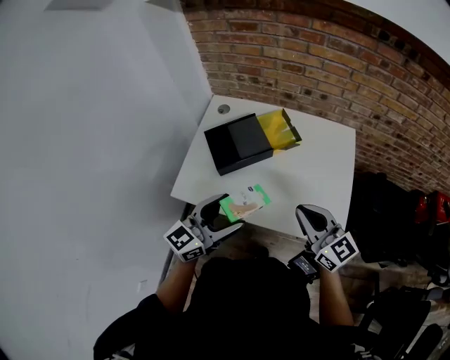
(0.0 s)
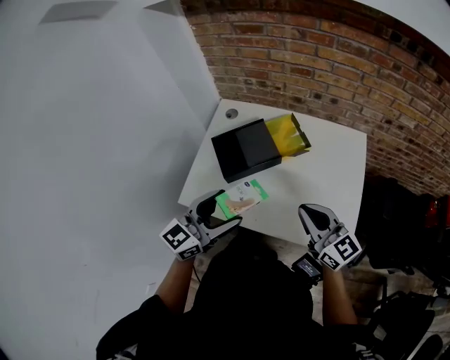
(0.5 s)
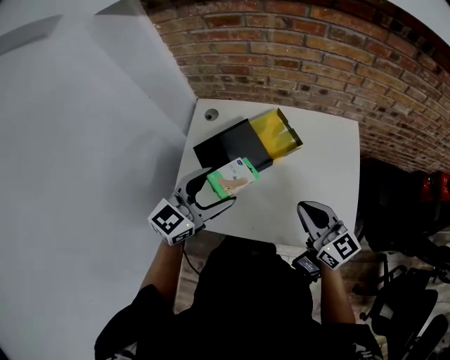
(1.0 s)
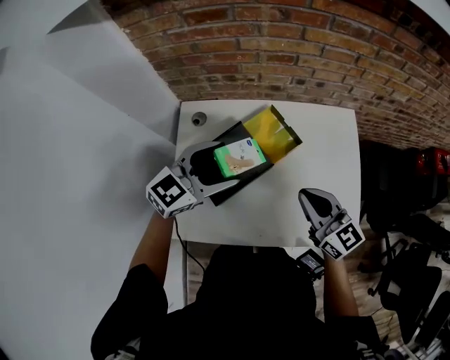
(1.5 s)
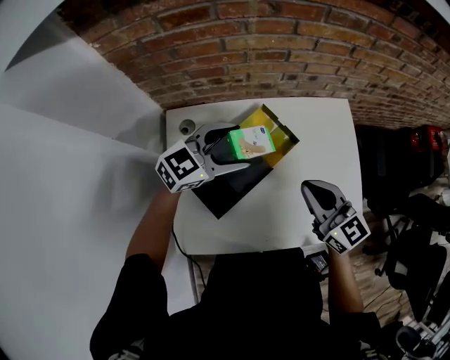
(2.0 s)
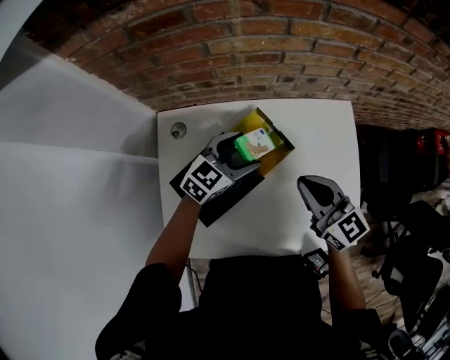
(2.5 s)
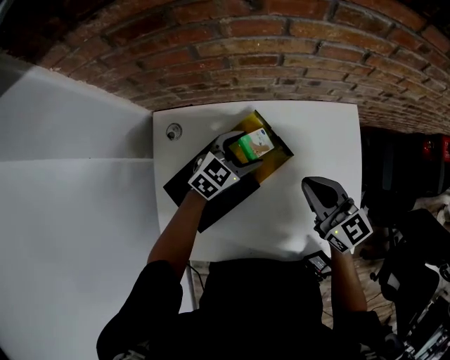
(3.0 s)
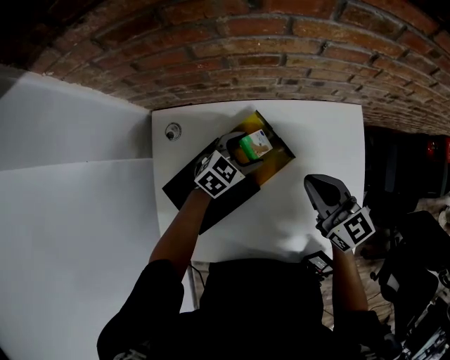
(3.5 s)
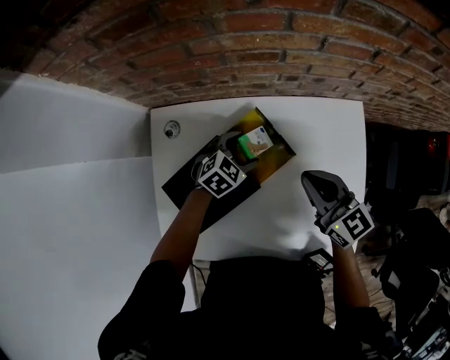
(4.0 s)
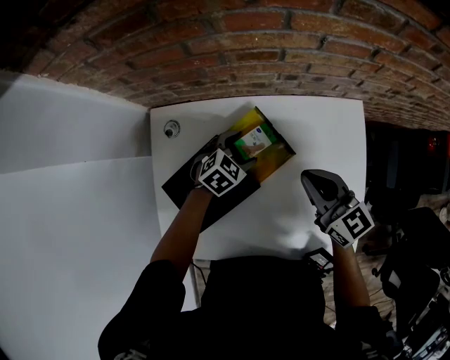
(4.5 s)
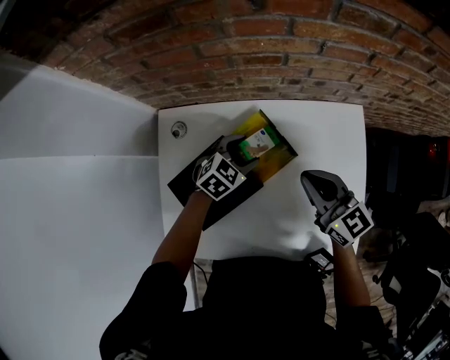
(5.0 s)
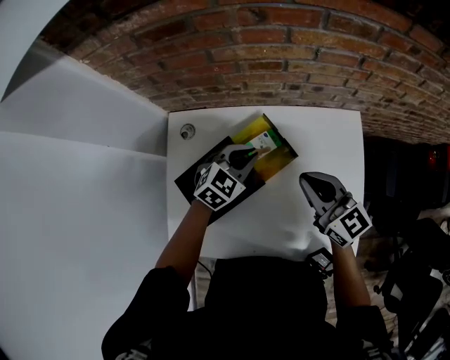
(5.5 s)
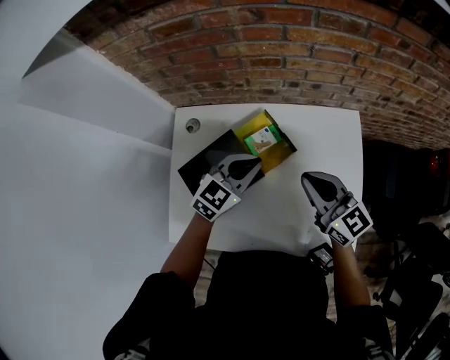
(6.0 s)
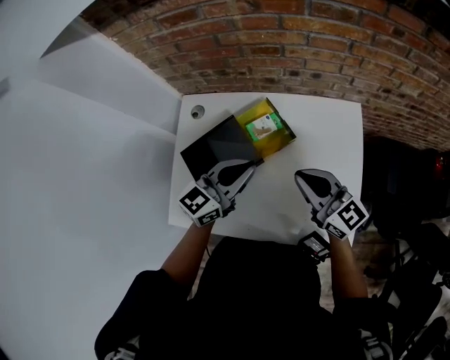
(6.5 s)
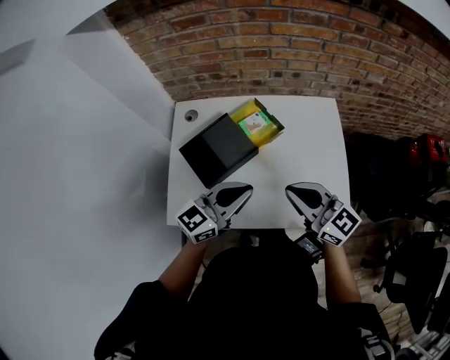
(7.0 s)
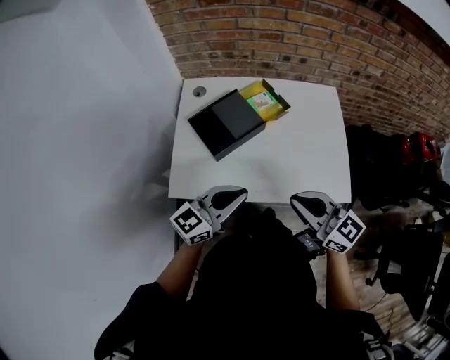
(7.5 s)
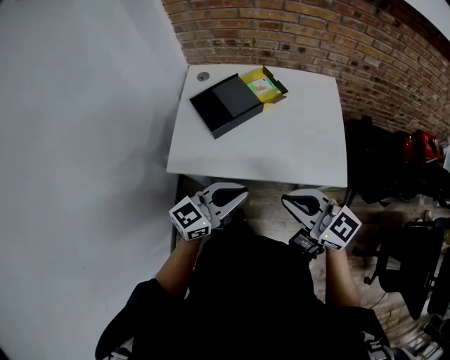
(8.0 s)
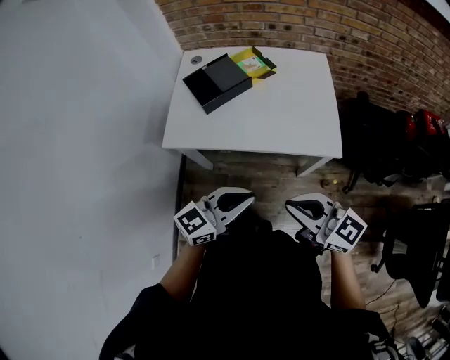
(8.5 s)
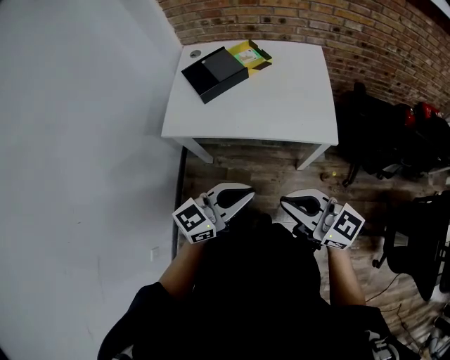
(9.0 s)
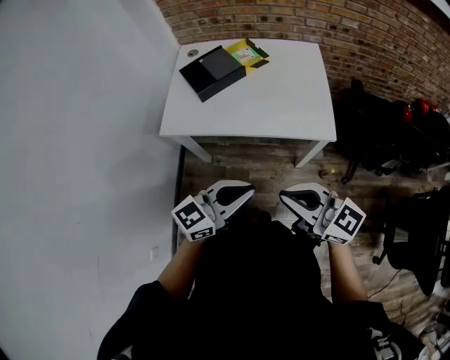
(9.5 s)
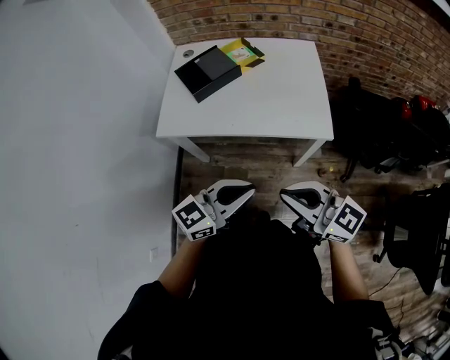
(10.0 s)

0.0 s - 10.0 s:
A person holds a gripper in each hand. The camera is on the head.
0.0 s - 2.0 s: The left gripper changes place by about 35 cm, and swivels about 50 degrees, while the right gripper shifts by about 20 cm, and changes its angle by approximately 20 degrees.
2.0 s - 4.0 s: The left gripper travels downward by some 20 cm, and points its fingers some 30 degrees further downward. Meanwhile the right gripper heads forward and downward, covering approximately 15 cm.
4.0 s - 6.0 s: The right gripper heads upward and backward, covering some 10 cm; the left gripper goes approximately 20 cm upward and backward, turns by some 30 degrees, and closes its fingers.
6.0 s - 8.0 s: The two grippers travel together, backward, some 40 cm. The left gripper rotates about 30 degrees.
8.0 s - 10.0 s: The two grippers go roughly 20 cm backward and to the right.

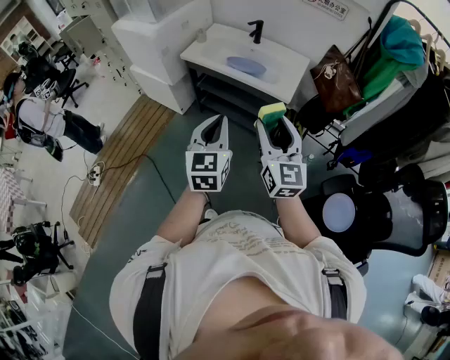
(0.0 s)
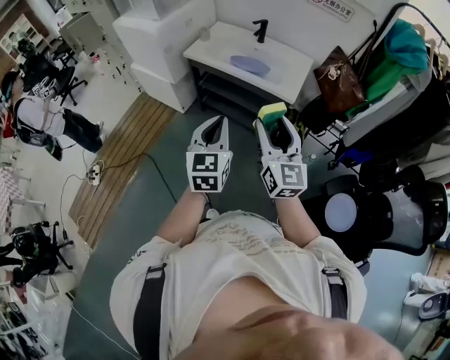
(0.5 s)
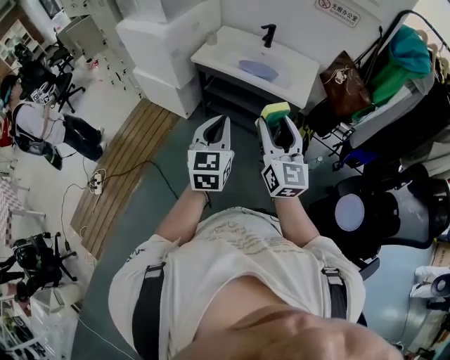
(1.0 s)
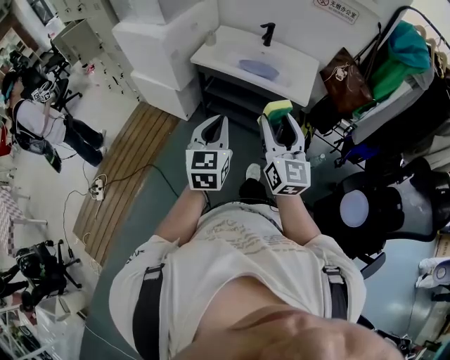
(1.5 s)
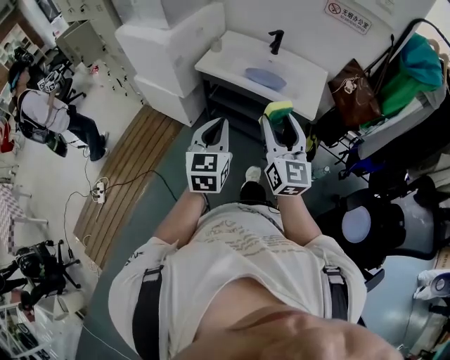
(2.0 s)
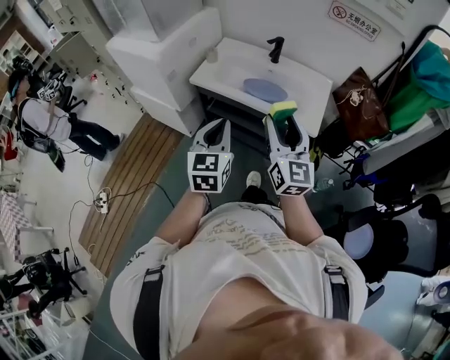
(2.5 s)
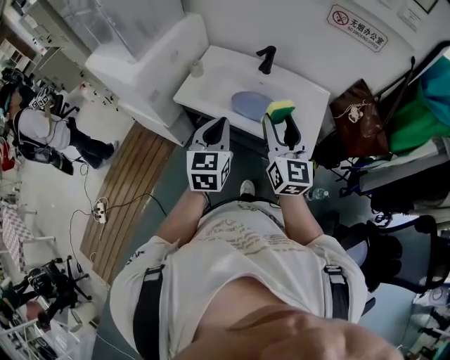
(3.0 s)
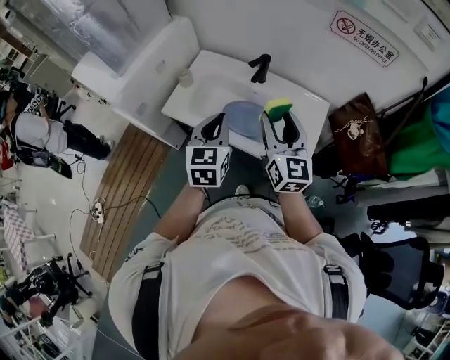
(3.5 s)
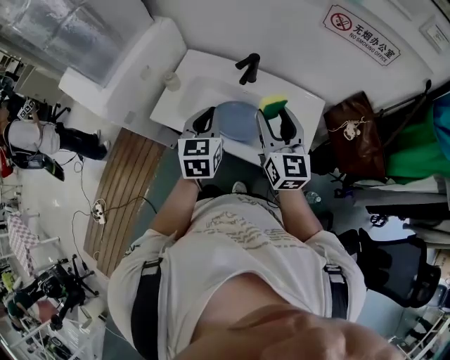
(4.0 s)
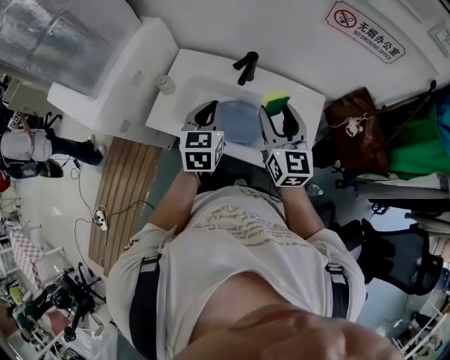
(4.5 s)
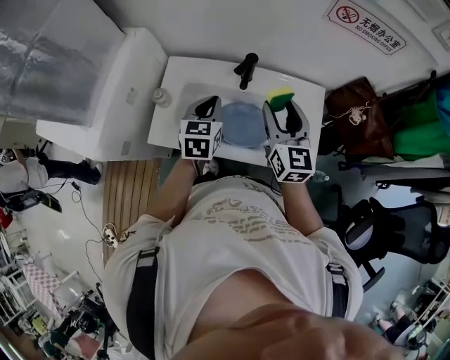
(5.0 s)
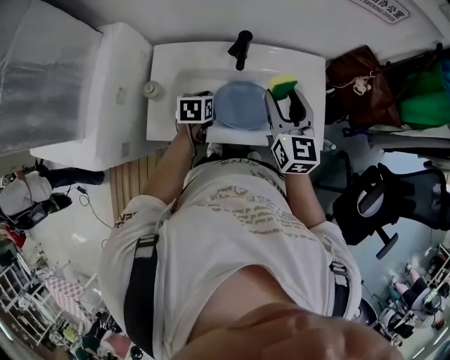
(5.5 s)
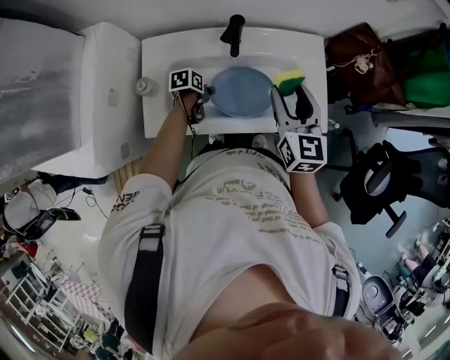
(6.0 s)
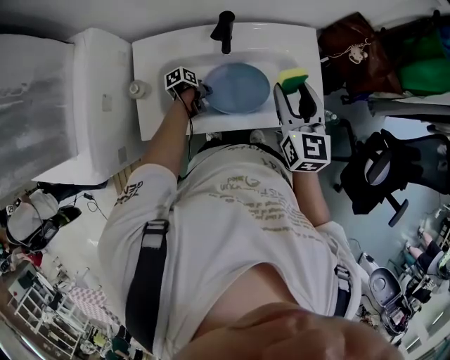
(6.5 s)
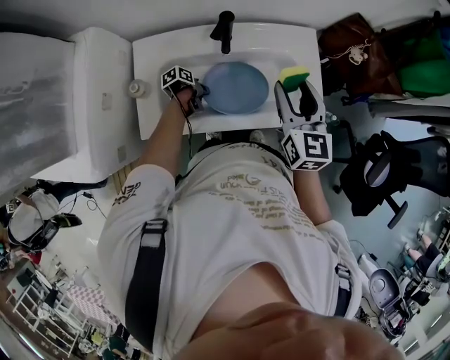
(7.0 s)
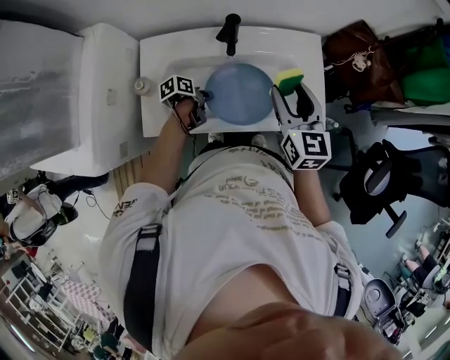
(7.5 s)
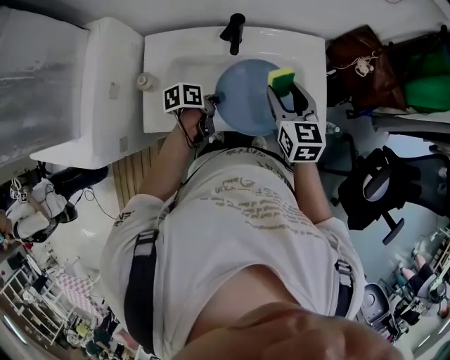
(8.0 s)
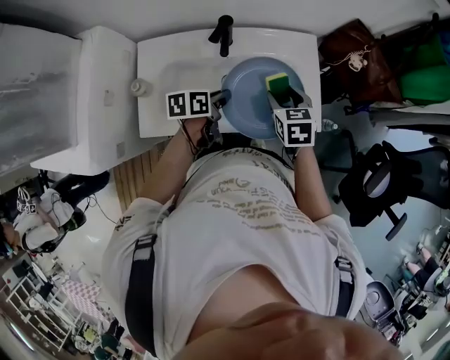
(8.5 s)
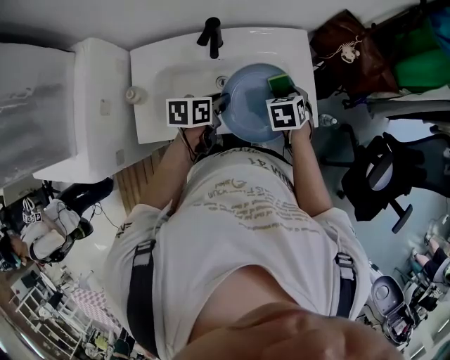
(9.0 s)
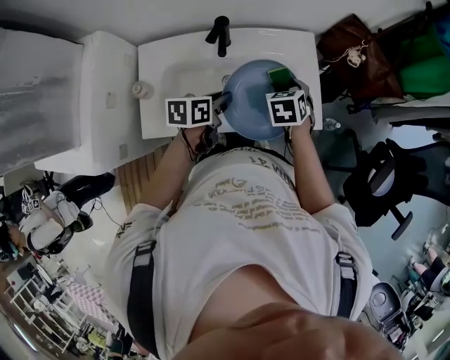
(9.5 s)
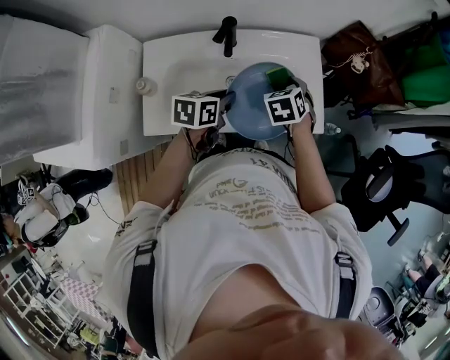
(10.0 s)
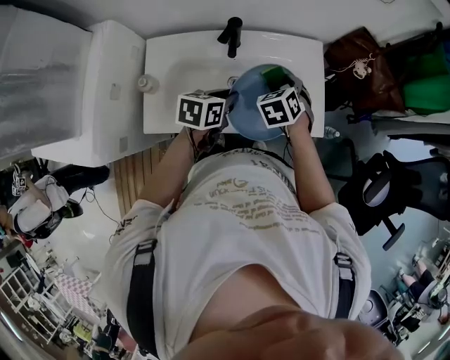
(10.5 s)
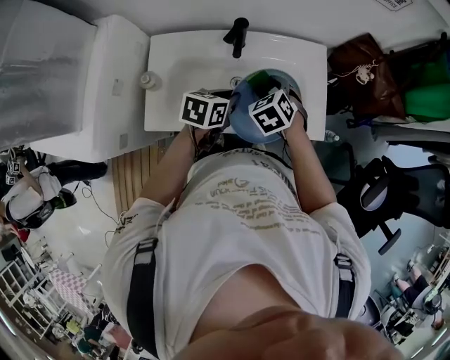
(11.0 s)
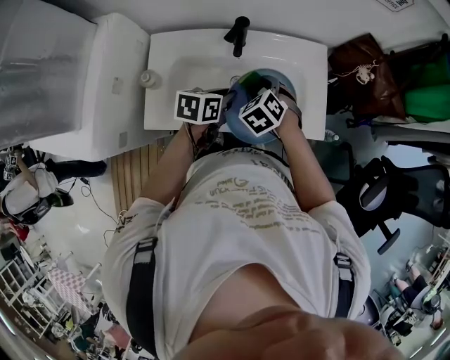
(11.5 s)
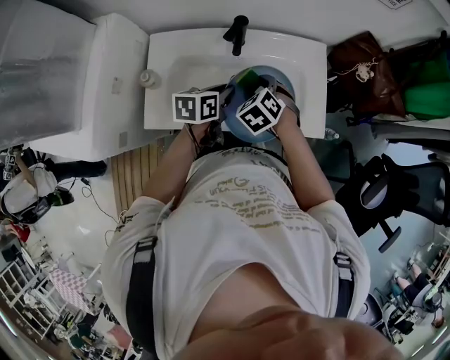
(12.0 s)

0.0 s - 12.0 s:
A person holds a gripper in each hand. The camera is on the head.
0.0 s - 2.0 s: The grippers both shift to the left and forward by approximately 15 cm.
2.0 s - 4.0 s: The two grippers travel together, forward, about 40 cm.
4.0 s - 6.0 s: The right gripper heads downward, covering roughly 5 cm, and changes its angle by roughly 30 degrees, while the left gripper heads downward, covering some 30 cm, points its fingers approximately 40 degrees further downward, and opens its fingers.
6.0 s - 8.0 s: The left gripper shifts about 10 cm upward and to the right, rotates roughly 20 degrees, and closes.
8.0 s - 10.0 s: The right gripper heads downward, covering some 10 cm, and rotates about 40 degrees, while the left gripper moves upward, some 10 cm, and rotates about 30 degrees.
10.0 s - 12.0 s: The right gripper goes approximately 10 cm to the left, and swivels approximately 30 degrees.

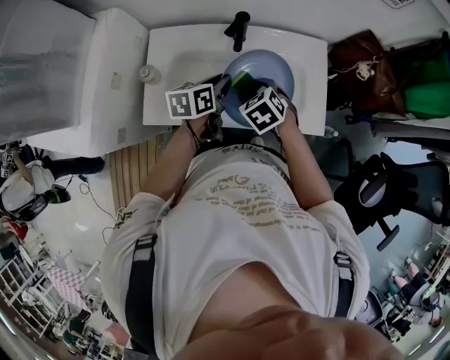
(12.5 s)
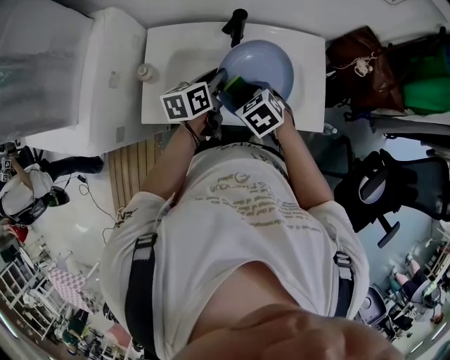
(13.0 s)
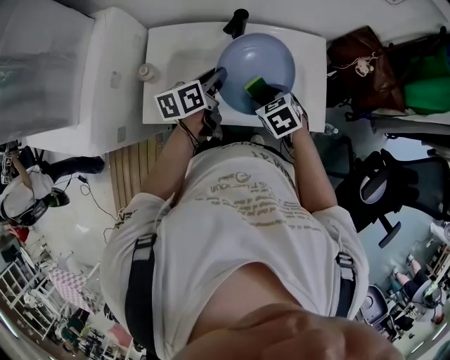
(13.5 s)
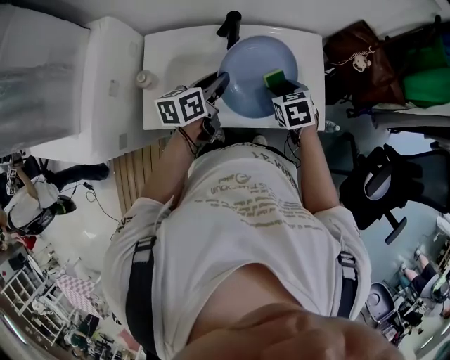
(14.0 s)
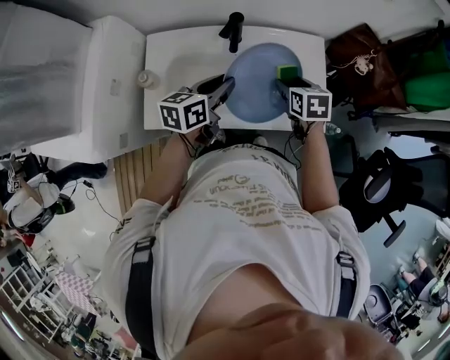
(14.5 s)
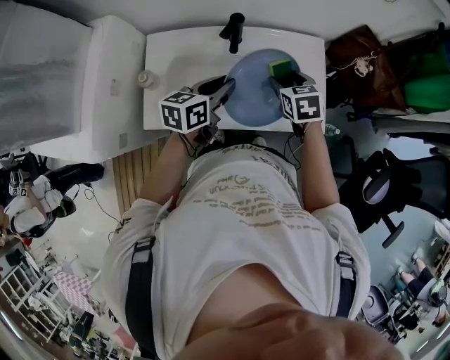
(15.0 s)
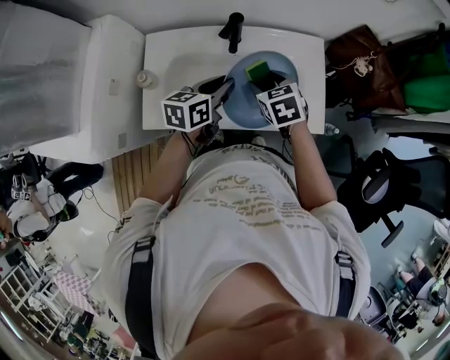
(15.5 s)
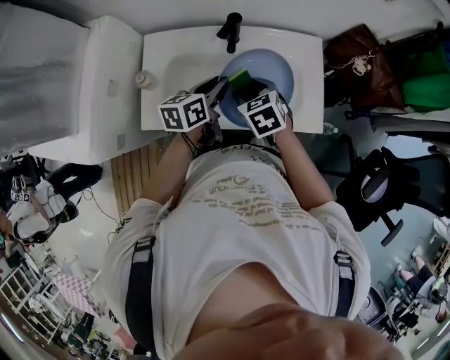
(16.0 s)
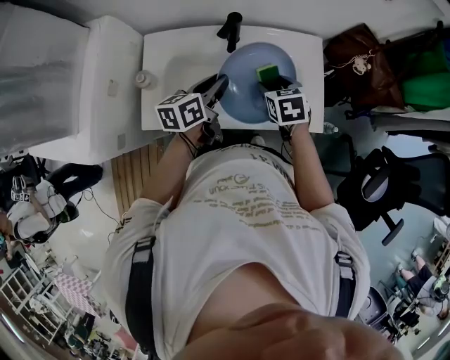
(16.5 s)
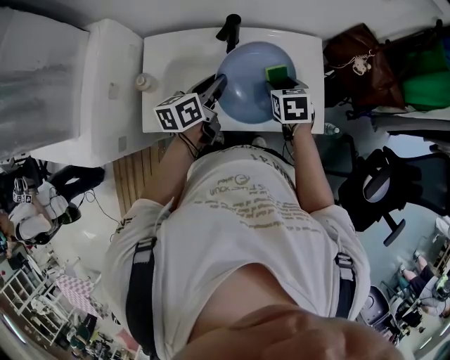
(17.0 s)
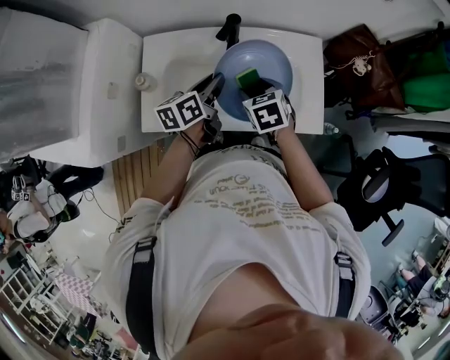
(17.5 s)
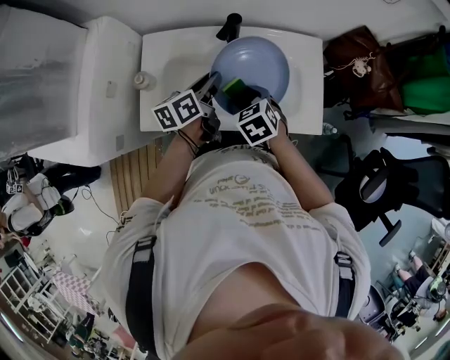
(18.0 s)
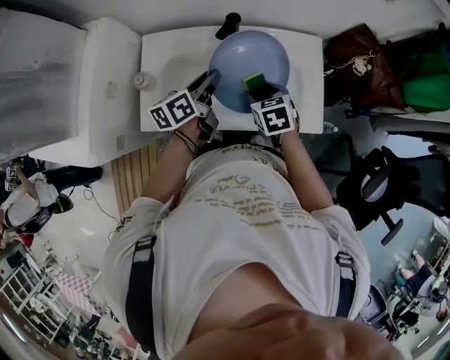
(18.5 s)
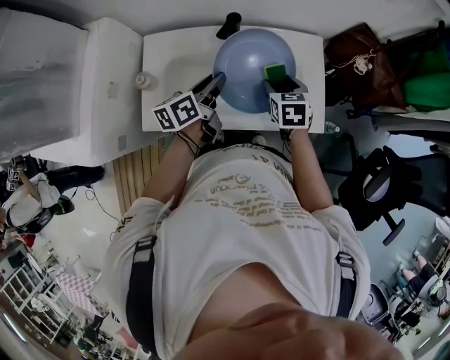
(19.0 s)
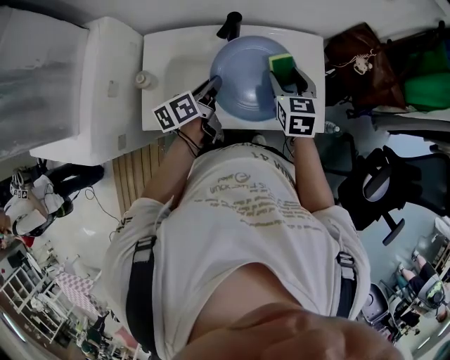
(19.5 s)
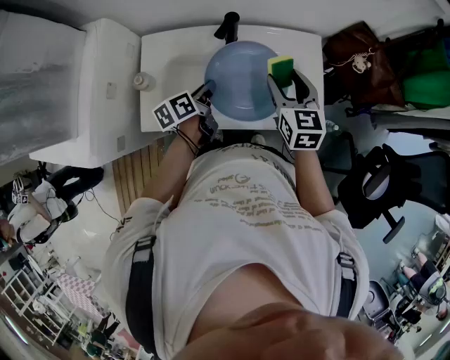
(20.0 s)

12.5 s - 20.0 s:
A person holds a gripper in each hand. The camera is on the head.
12.5 s - 14.5 s: The right gripper goes some 15 cm to the right, and rotates approximately 40 degrees; the left gripper changes place by roughly 5 cm.
14.5 s - 16.5 s: The right gripper goes some 5 cm to the left.
16.5 s - 18.0 s: The right gripper goes roughly 10 cm to the left.
18.0 s - 20.0 s: The left gripper heads downward, covering some 5 cm. The right gripper goes approximately 15 cm to the right, upward and forward, and turns by some 40 degrees.
